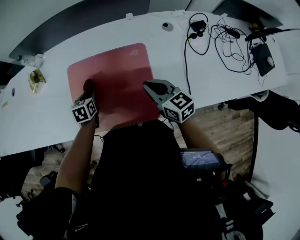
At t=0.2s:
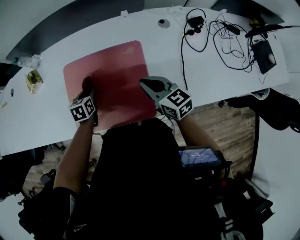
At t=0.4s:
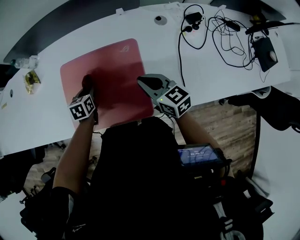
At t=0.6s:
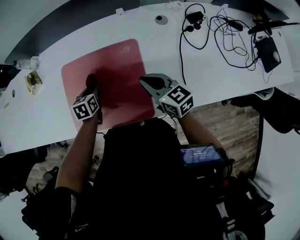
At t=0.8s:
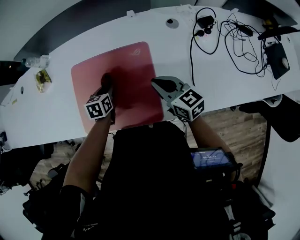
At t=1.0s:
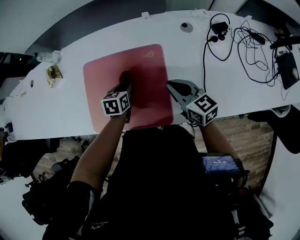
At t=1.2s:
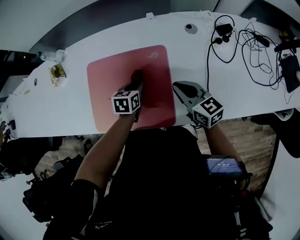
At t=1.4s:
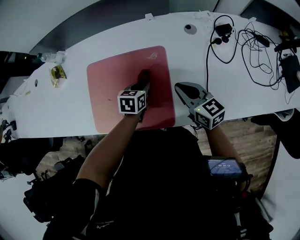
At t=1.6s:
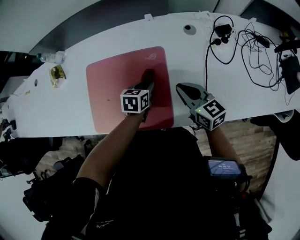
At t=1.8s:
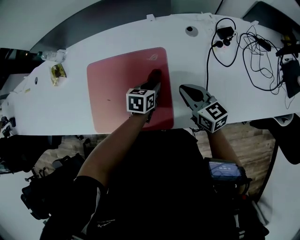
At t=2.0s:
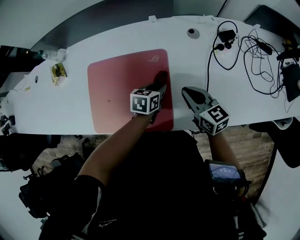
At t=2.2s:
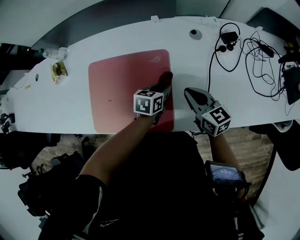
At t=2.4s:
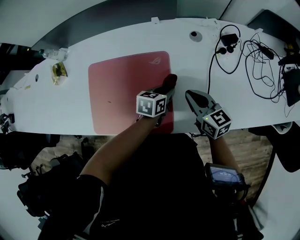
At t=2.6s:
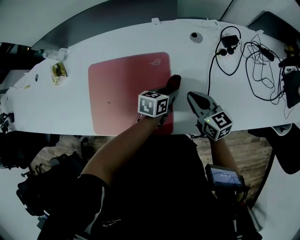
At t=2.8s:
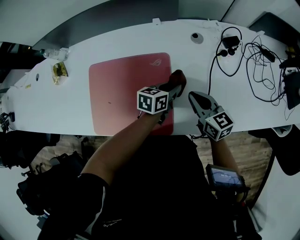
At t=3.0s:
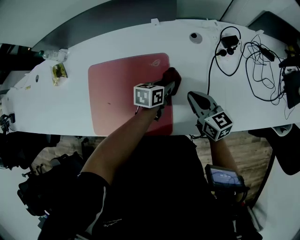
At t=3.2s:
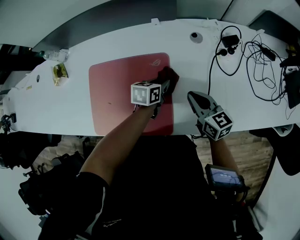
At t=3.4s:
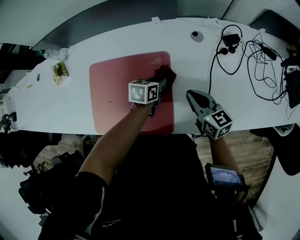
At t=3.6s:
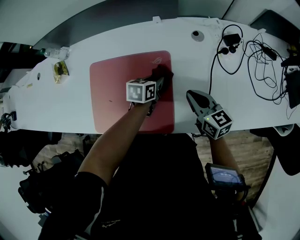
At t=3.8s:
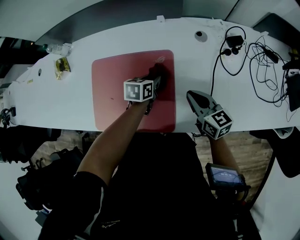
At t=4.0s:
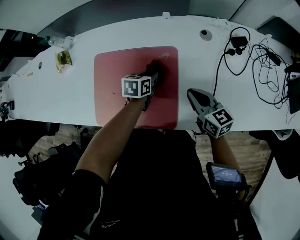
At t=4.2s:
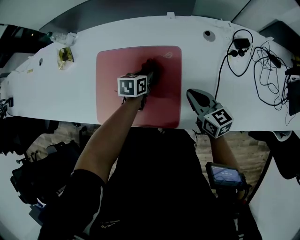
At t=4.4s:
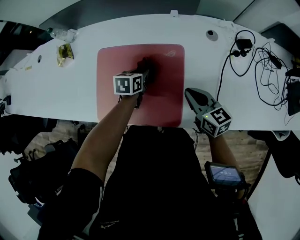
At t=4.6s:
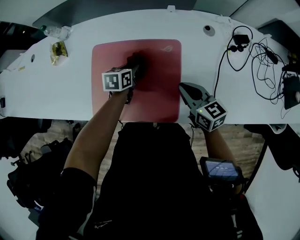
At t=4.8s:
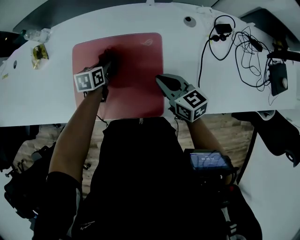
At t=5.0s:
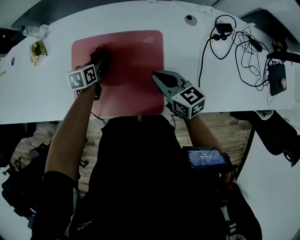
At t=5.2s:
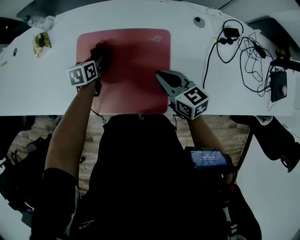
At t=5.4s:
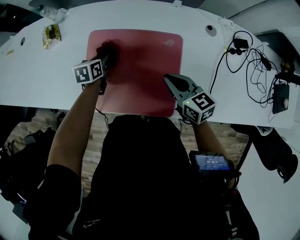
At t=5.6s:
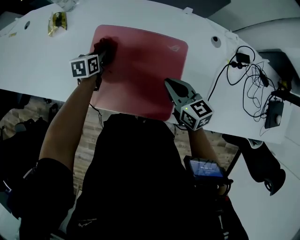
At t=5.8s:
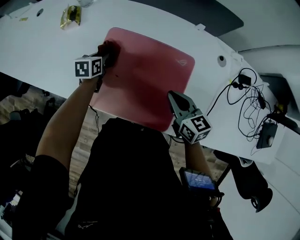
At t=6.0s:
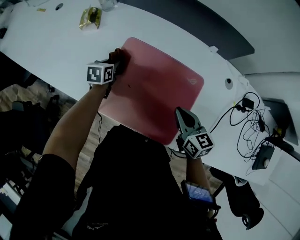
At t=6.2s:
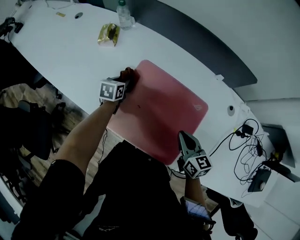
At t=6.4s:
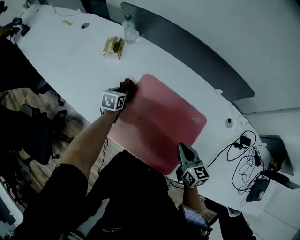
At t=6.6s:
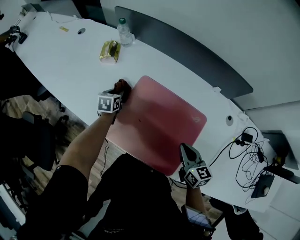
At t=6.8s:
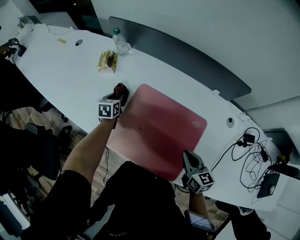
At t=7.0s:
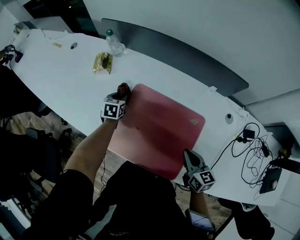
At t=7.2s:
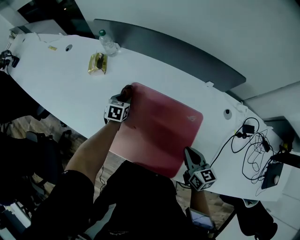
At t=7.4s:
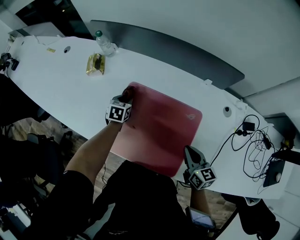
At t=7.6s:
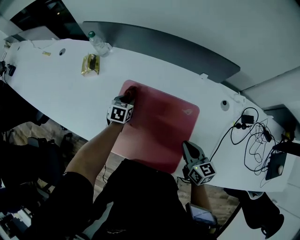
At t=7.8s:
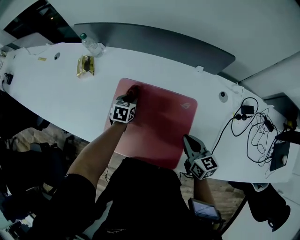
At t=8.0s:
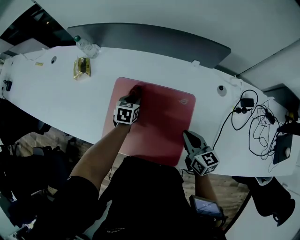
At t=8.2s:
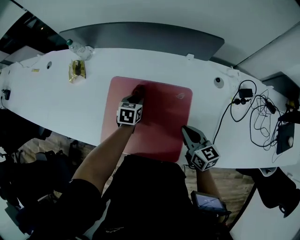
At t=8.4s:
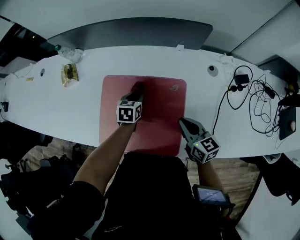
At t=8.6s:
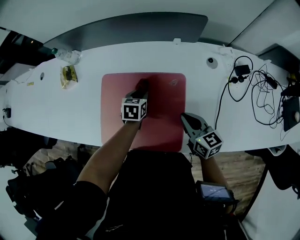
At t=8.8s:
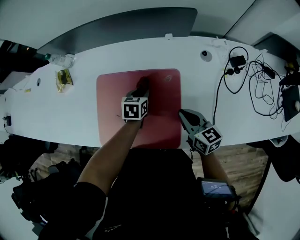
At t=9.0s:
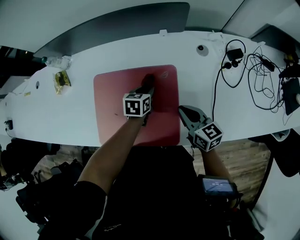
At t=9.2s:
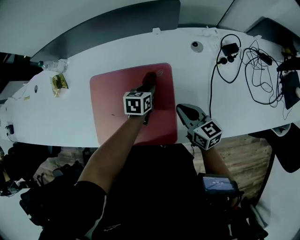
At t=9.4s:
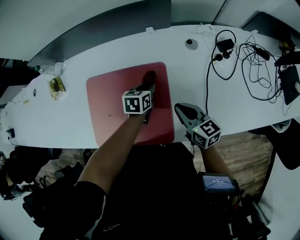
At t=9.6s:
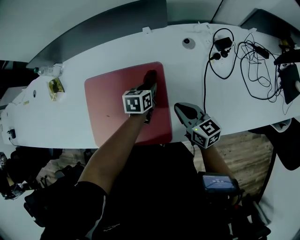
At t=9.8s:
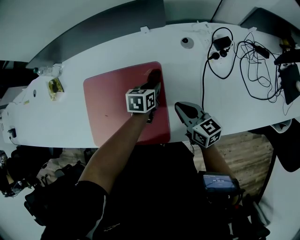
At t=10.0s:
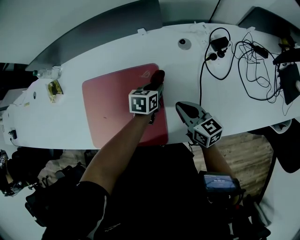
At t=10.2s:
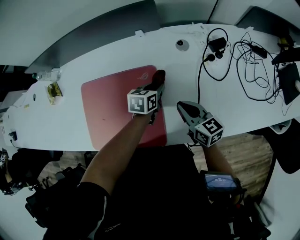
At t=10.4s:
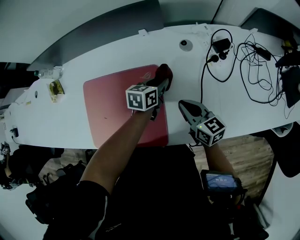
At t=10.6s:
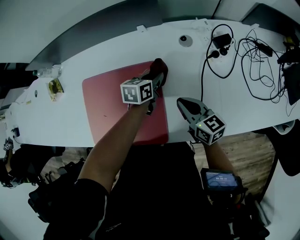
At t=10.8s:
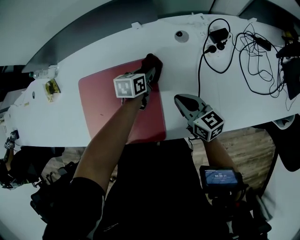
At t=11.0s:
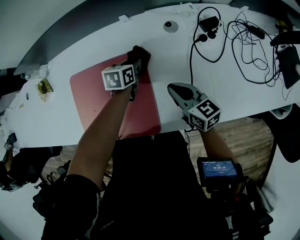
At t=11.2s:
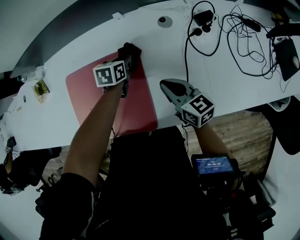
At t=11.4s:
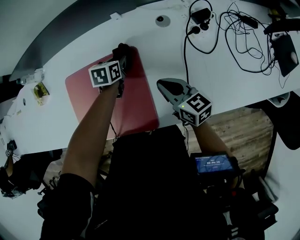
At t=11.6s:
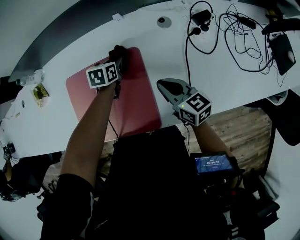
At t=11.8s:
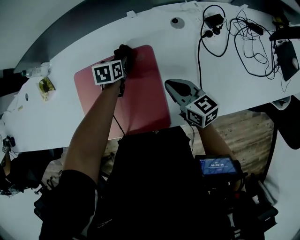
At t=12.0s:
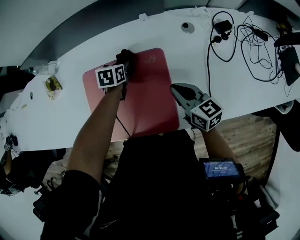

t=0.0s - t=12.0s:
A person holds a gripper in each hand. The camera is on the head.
t=0.0s - t=1.6s: The left gripper is displaced to the right by approximately 20 cm. Meanwhile the right gripper travels to the right by about 10 cm.
t=1.6s - t=3.0s: The left gripper goes about 10 cm to the right.
t=3.0s - t=4.4s: The left gripper shifts about 20 cm to the left, while the right gripper is displaced to the left by about 5 cm.
t=4.4s - t=6.0s: The right gripper heads to the left, covering approximately 10 cm; the left gripper travels to the left by about 25 cm, and changes its angle by roughly 20 degrees.
t=6.0s - t=7.6s: The left gripper moves to the right, about 5 cm.
t=7.6s - t=9.0s: The left gripper is displaced to the right by about 20 cm.
t=9.0s - t=10.4s: The left gripper travels to the right by approximately 15 cm; the right gripper travels to the right by about 10 cm.
t=10.4s - t=12.0s: The left gripper heads to the left, covering approximately 20 cm, and turns by approximately 20 degrees, while the right gripper is displaced to the left by roughly 5 cm.

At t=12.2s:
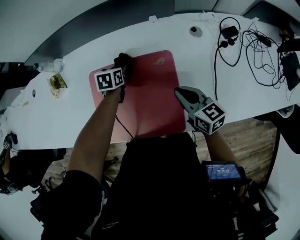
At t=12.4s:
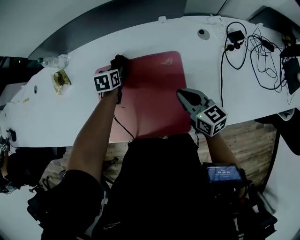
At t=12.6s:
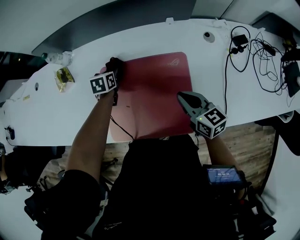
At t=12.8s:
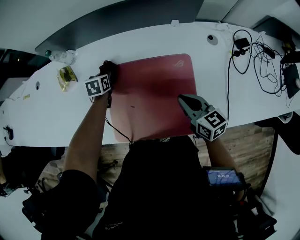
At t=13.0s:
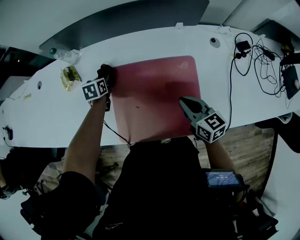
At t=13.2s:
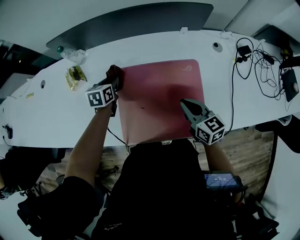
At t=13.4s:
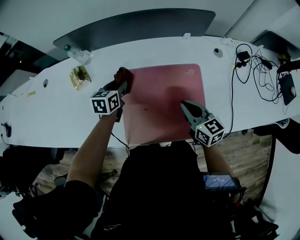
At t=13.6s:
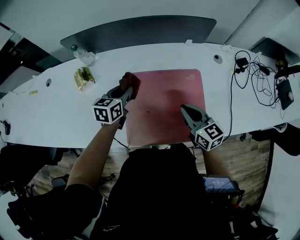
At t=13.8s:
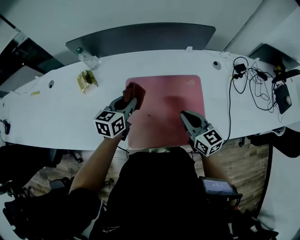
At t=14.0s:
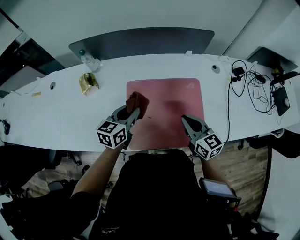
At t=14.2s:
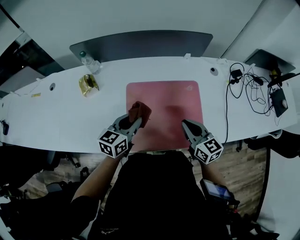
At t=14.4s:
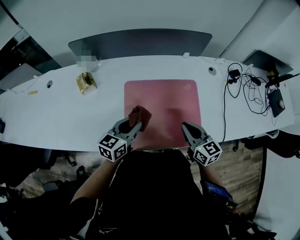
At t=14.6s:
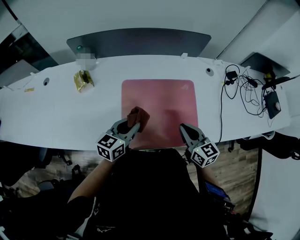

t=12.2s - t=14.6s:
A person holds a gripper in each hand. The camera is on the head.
t=12.2s - t=13.4s: The left gripper moves to the left and upward, about 20 cm. Meanwhile the right gripper travels to the left by about 15 cm.
t=13.4s - t=14.6s: The right gripper heads backward, covering roughly 5 cm, while the left gripper goes roughly 20 cm backward, and changes its angle by about 20 degrees.

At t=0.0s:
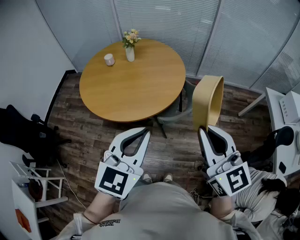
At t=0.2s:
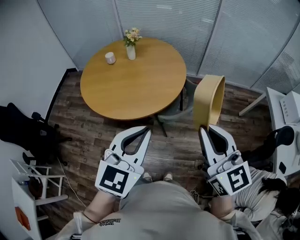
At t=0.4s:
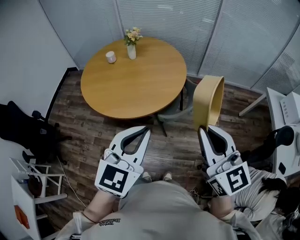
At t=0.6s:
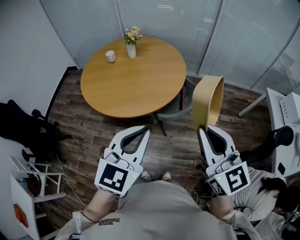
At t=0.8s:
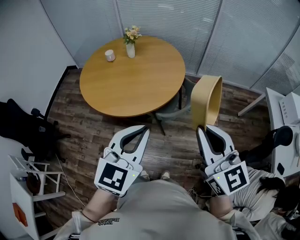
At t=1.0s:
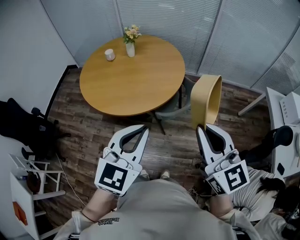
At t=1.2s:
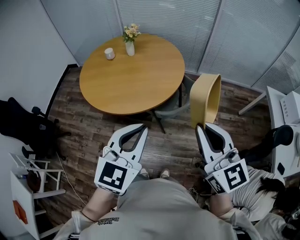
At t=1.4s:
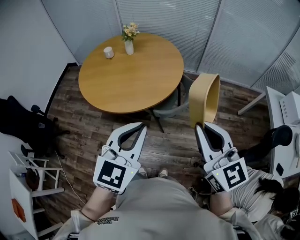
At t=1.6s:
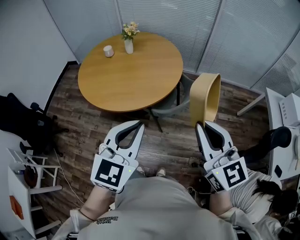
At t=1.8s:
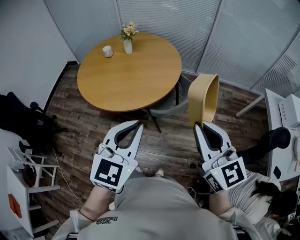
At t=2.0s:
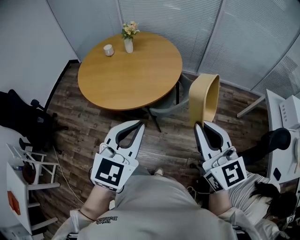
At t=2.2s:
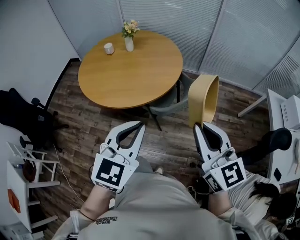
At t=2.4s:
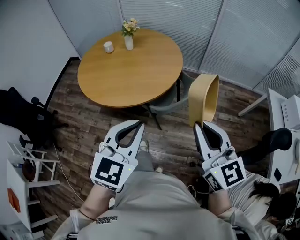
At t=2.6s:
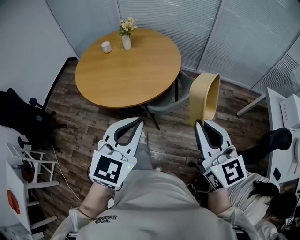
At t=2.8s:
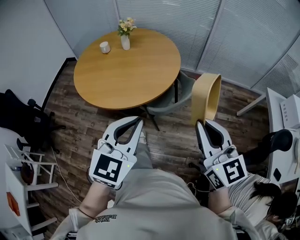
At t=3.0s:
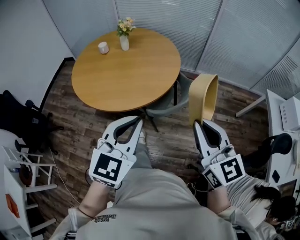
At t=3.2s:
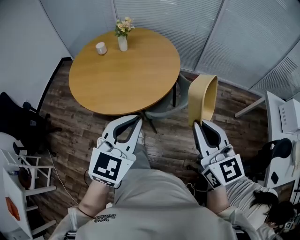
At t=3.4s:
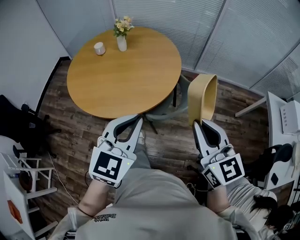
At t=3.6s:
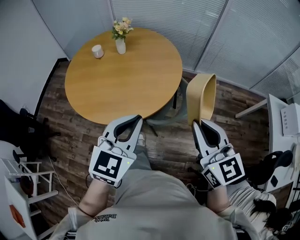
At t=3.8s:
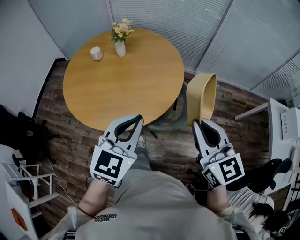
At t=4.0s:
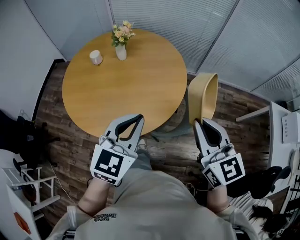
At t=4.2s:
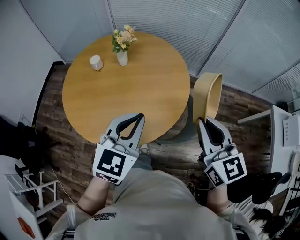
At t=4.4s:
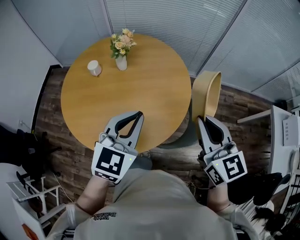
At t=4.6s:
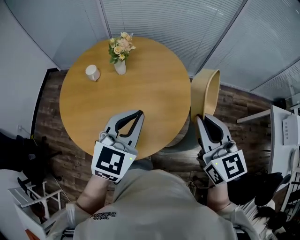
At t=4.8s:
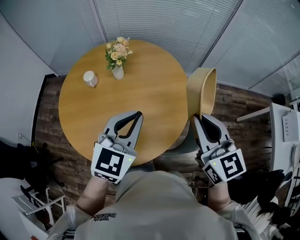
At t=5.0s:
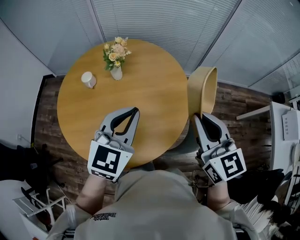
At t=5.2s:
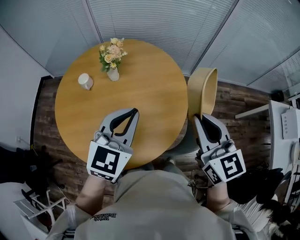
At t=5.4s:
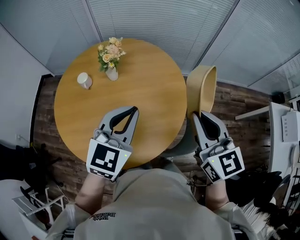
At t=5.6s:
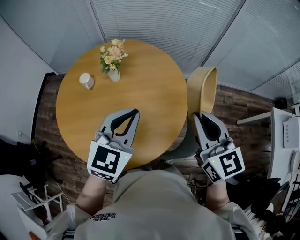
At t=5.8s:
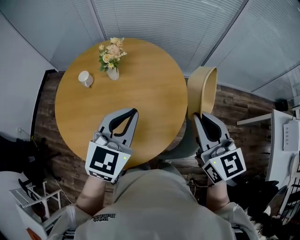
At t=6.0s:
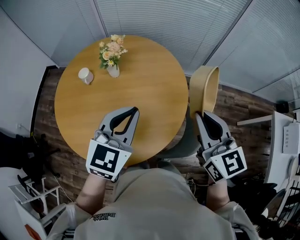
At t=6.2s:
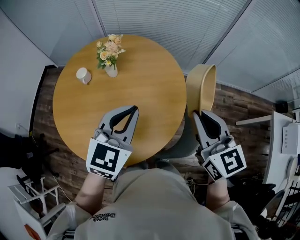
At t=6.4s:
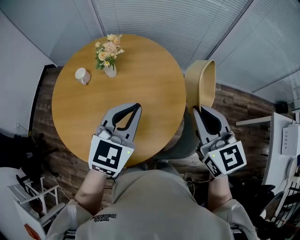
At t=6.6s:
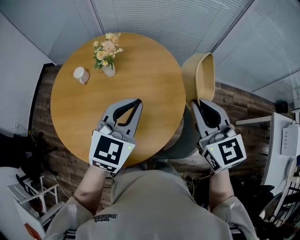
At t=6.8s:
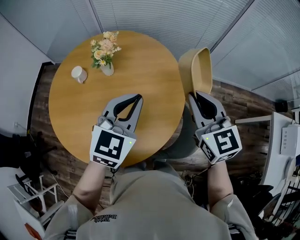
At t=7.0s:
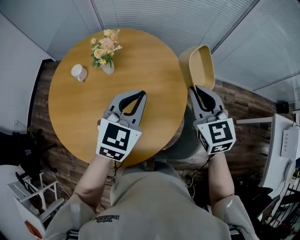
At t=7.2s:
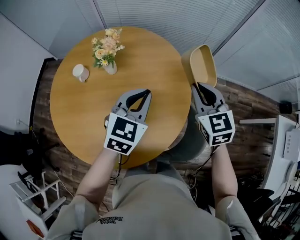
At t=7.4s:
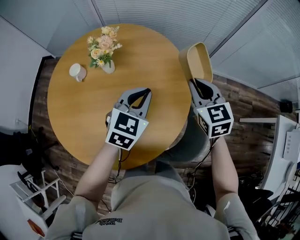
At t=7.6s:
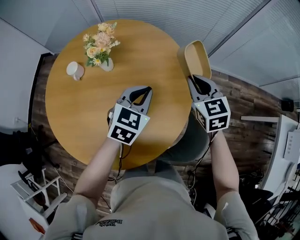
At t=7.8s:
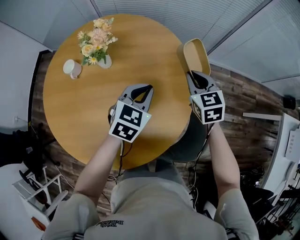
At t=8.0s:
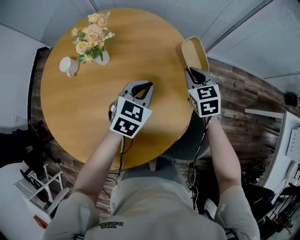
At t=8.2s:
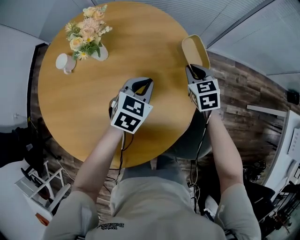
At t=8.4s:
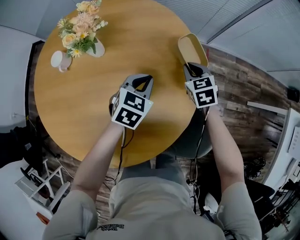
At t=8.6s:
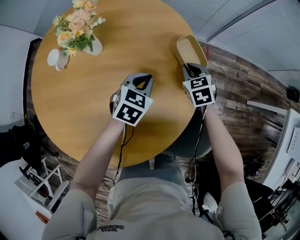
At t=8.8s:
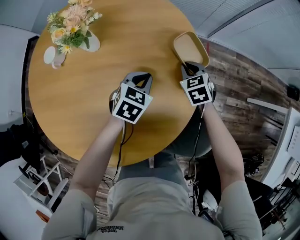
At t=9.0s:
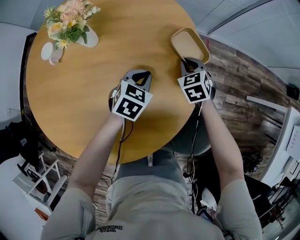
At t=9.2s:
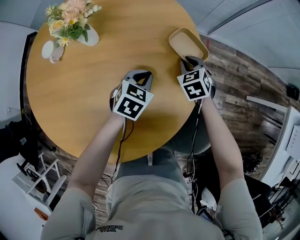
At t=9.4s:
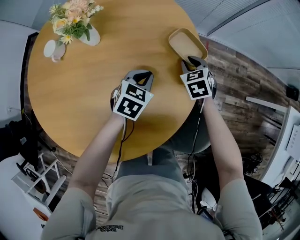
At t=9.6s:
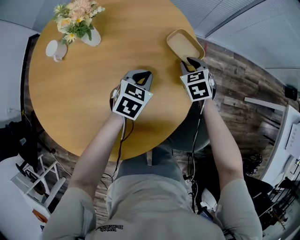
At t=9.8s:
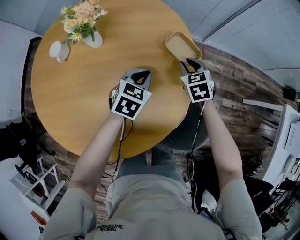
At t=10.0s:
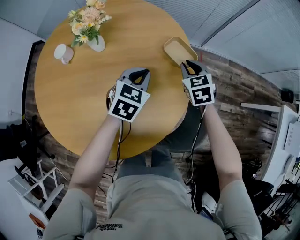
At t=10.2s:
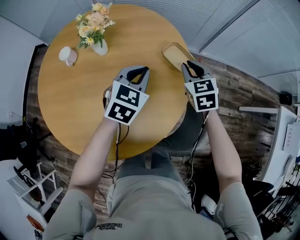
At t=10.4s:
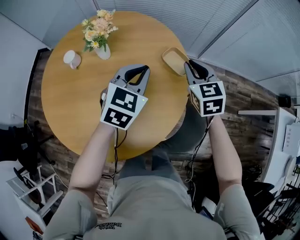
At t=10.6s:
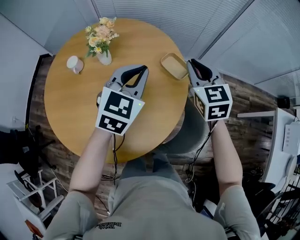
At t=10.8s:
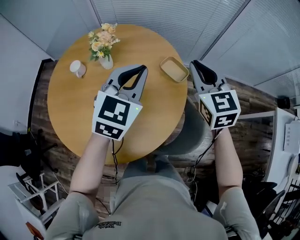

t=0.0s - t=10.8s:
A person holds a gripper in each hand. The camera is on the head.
t=0.0s - t=1.6s: The right gripper ends up approximately 5 cm from where it was.
t=1.6s - t=3.0s: The left gripper ends up approximately 5 cm from where it was. Meanwhile the right gripper shifts by some 5 cm.
t=3.0s - t=4.6s: Both grippers travel together forward, roughly 35 cm.
t=4.6s - t=6.2s: The grippers both shift forward by about 10 cm.
t=6.2s - t=7.8s: The right gripper is displaced forward and downward by some 30 cm, and changes its angle by about 20 degrees, while the left gripper goes approximately 25 cm downward and forward.
t=7.8s - t=9.2s: The grippers both shift downward by about 20 cm. The right gripper rotates approximately 20 degrees.
t=9.2s - t=10.8s: Both grippers move upward, some 35 cm. The left gripper changes its angle by about 30 degrees. The right gripper tilts its fingers roughly 40 degrees upward.
